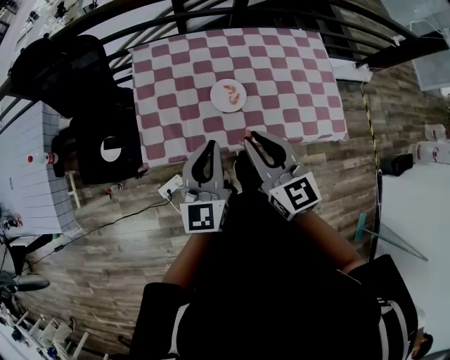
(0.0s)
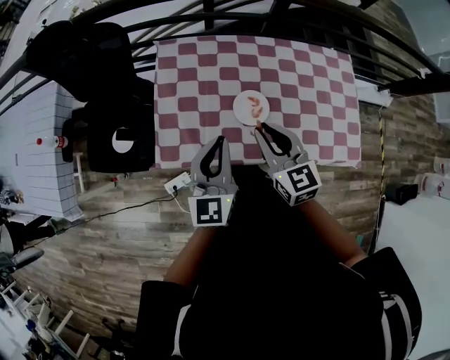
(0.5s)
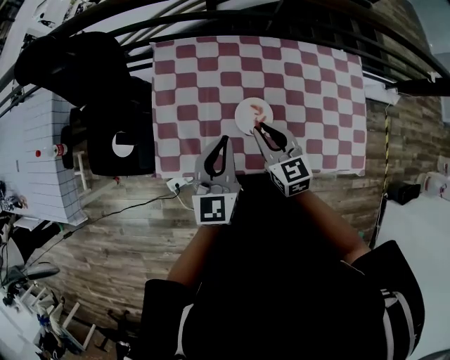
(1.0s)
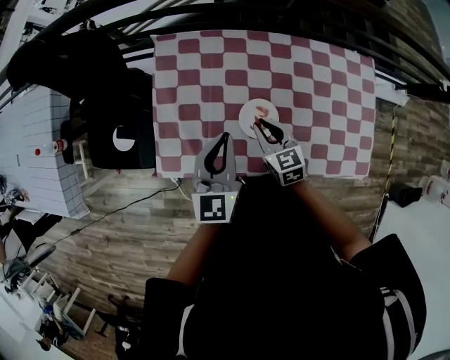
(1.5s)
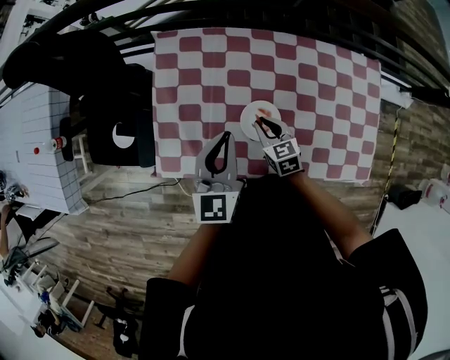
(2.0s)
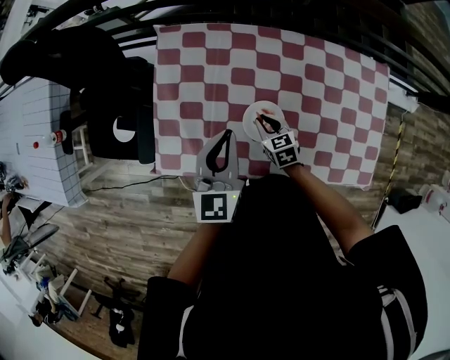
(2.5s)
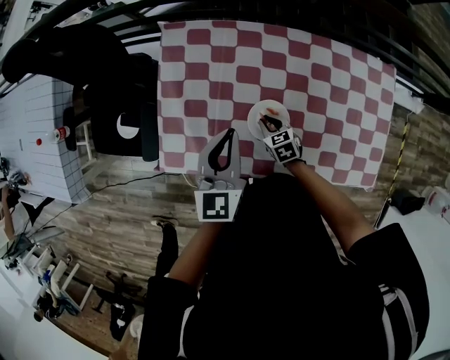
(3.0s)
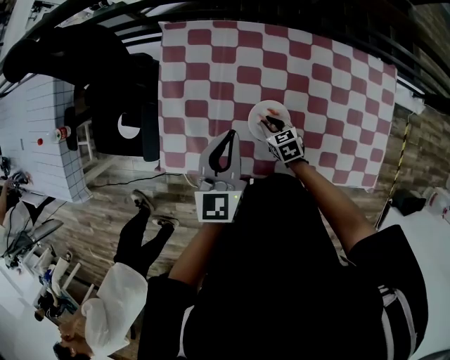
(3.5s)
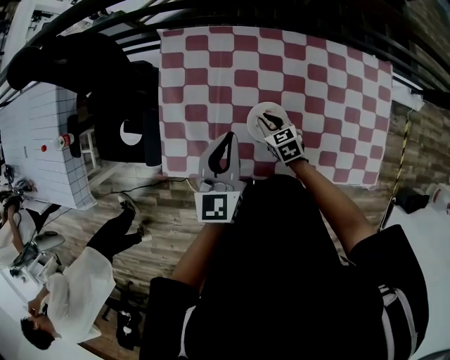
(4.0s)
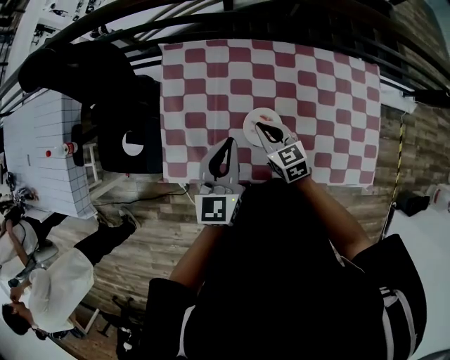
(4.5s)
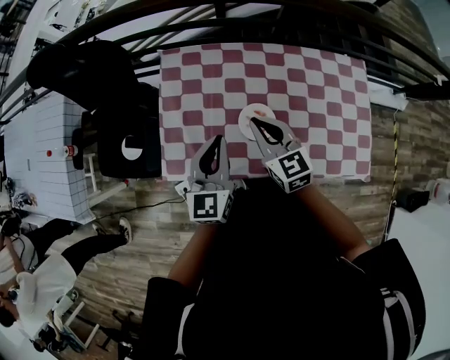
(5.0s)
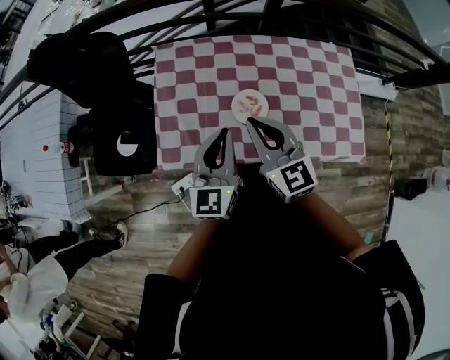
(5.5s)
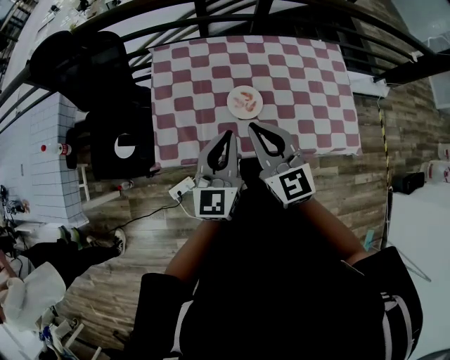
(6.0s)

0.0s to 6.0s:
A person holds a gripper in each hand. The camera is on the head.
0.0s to 2.0s: The left gripper is displaced forward and downward by roughly 20 cm. The right gripper is displaced downward and forward by some 35 cm, and swivels about 30 degrees.
2.0s to 4.0s: The right gripper shifts about 5 cm downward.
4.0s to 6.0s: The right gripper moves upward and backward, approximately 40 cm, and angles its fingers upward, by roughly 40 degrees. Meanwhile the left gripper is displaced backward and upward by about 20 cm.

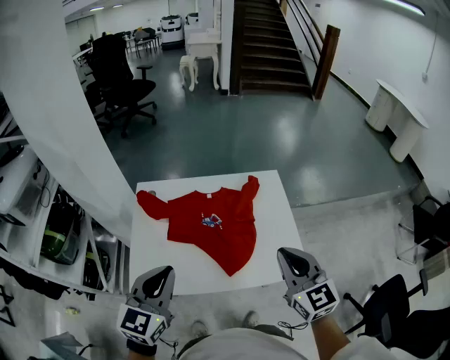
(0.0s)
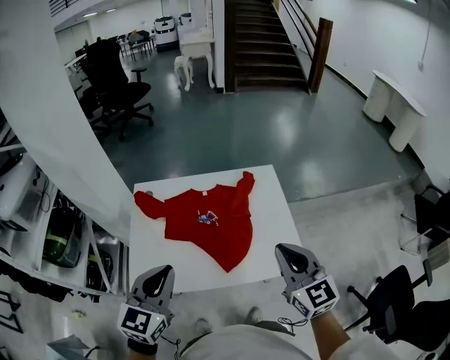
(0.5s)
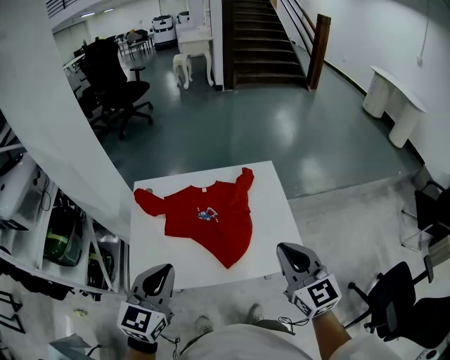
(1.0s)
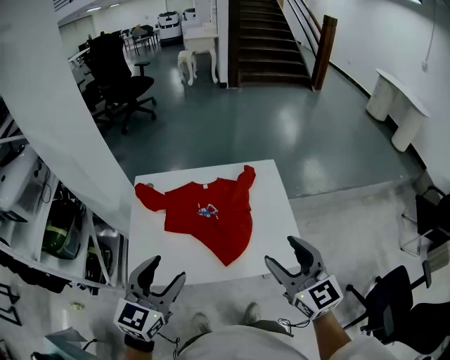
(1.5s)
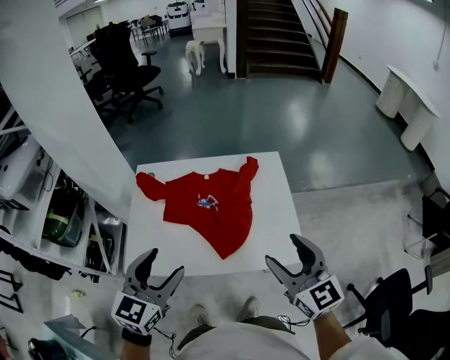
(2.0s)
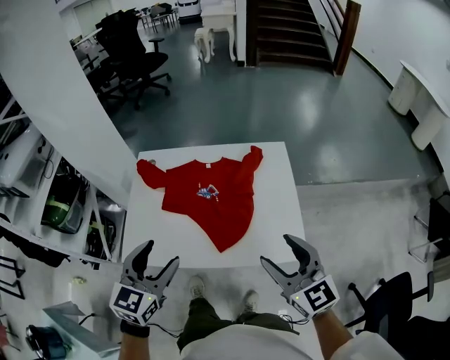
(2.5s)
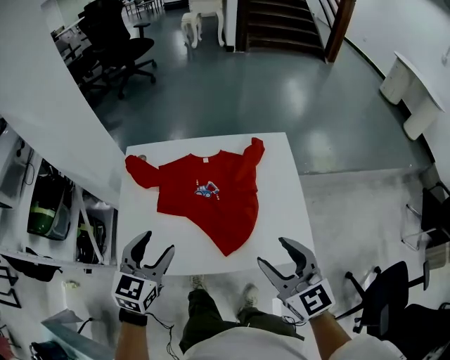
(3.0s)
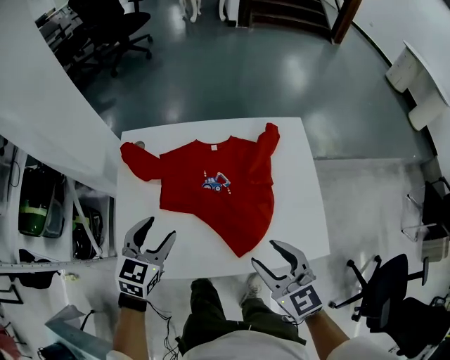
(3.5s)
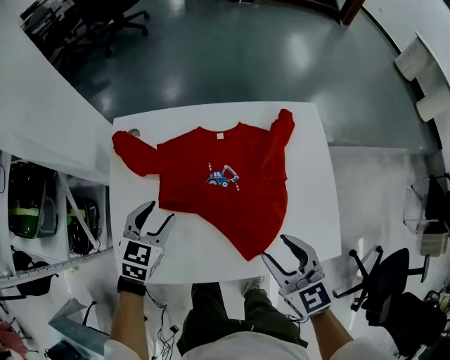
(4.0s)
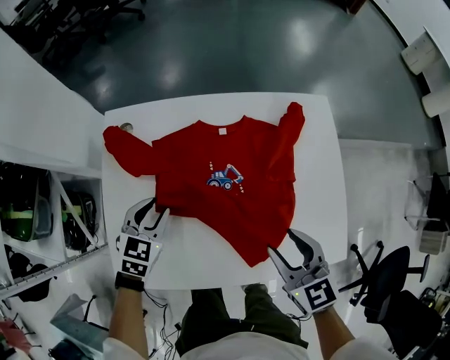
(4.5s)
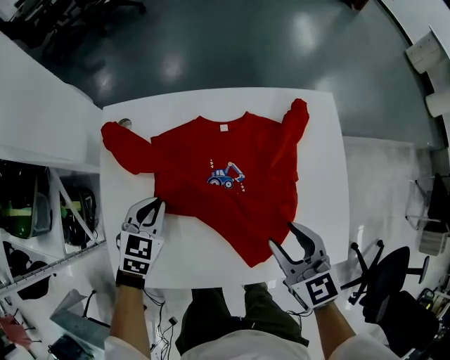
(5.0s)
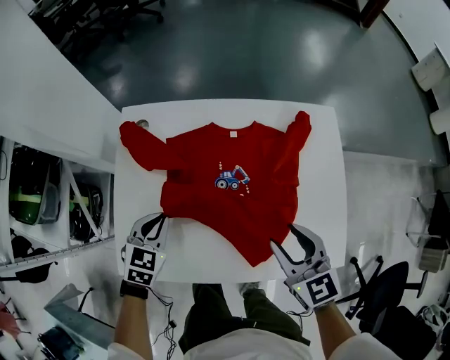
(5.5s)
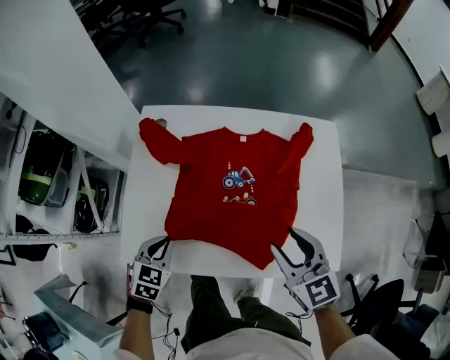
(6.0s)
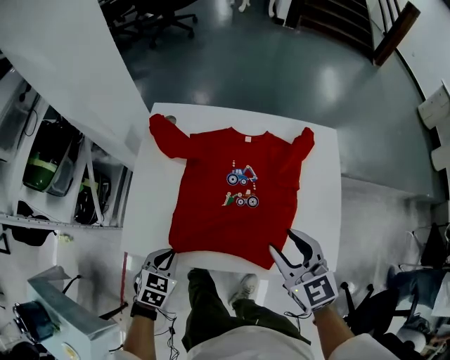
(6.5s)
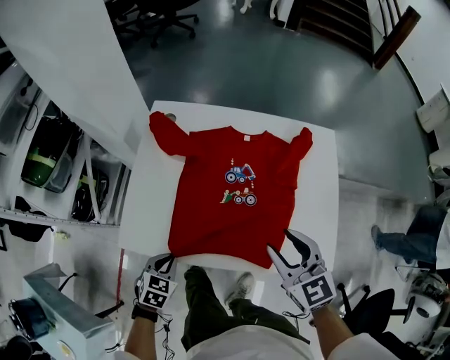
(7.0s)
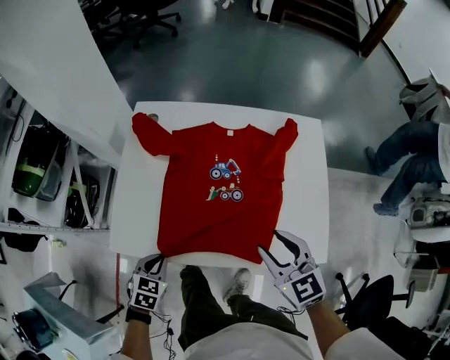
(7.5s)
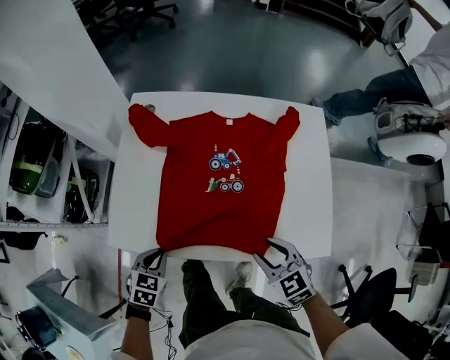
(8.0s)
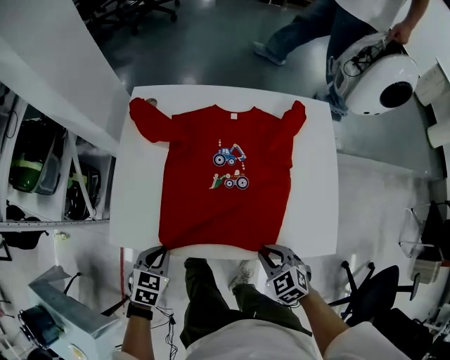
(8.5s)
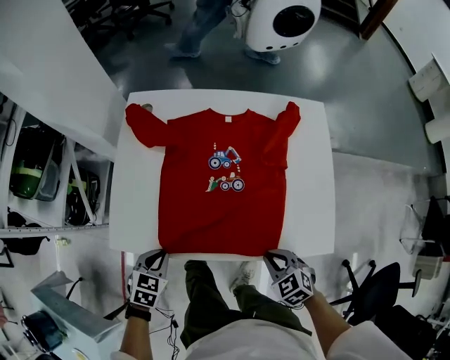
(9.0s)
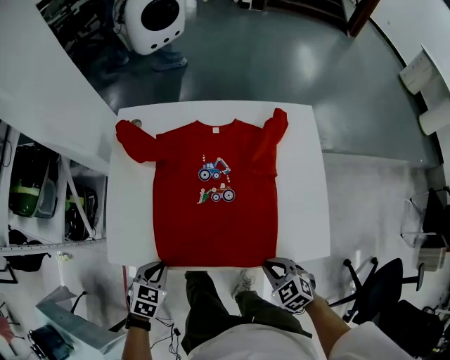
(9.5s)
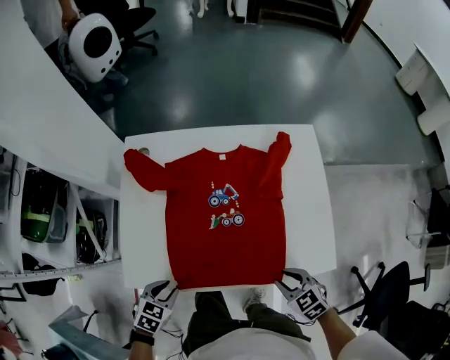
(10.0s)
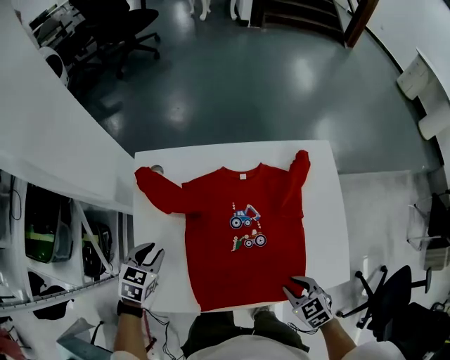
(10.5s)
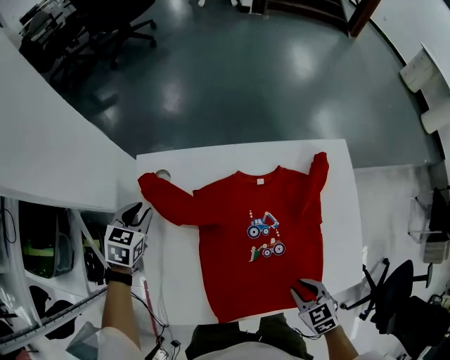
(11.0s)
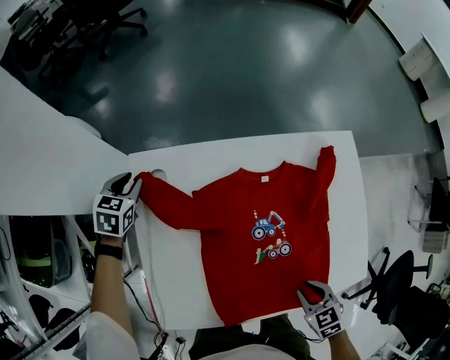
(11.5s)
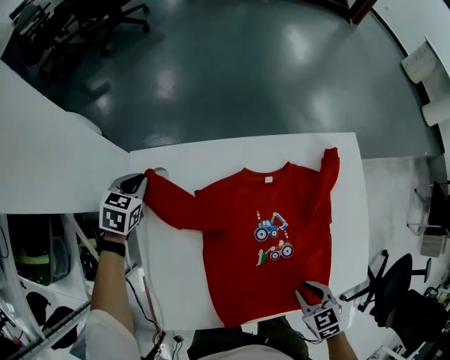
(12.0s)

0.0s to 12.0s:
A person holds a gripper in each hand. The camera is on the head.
0.0s to 2.0s: The left gripper shifts by some 5 cm, and opens its fingers, while the right gripper ends up roughly 5 cm from where it was, and opens up.
2.0s to 4.0s: The left gripper heads downward and forward, covering some 35 cm, and turns by about 20 degrees, while the right gripper moves downward, forward and to the left, approximately 25 cm, and rotates some 30 degrees.
4.0s to 6.0s: The left gripper moves backward, about 10 cm, and closes its fingers.
6.0s to 8.0s: The left gripper is displaced backward by some 10 cm, while the right gripper moves downward and backward, some 15 cm.
8.0s to 10.0s: The right gripper moves to the right, some 5 cm.
10.0s to 12.0s: The right gripper heads forward and to the left, covering roughly 15 cm; the left gripper moves forward, roughly 50 cm.

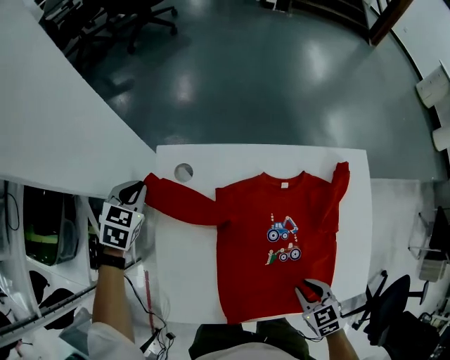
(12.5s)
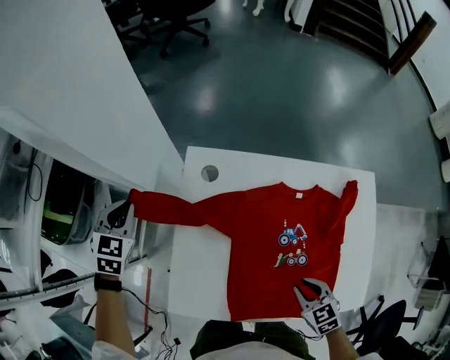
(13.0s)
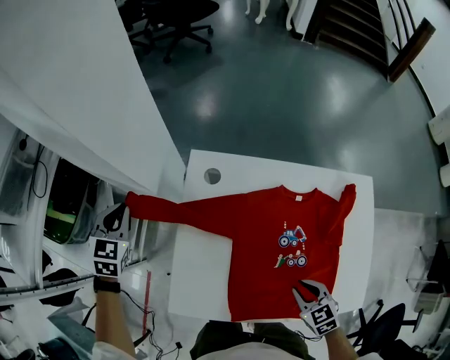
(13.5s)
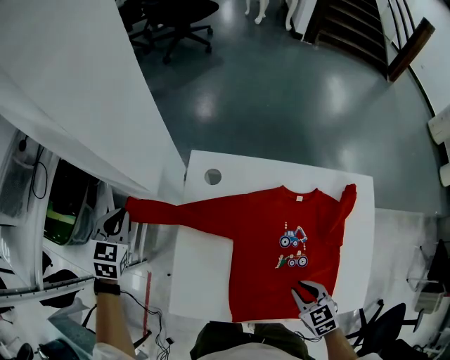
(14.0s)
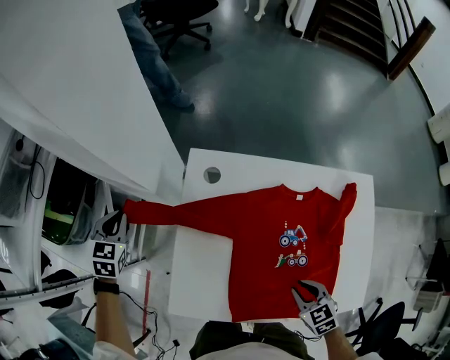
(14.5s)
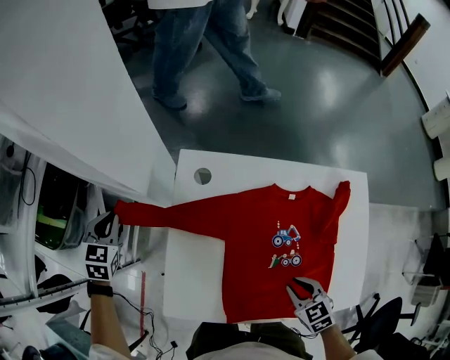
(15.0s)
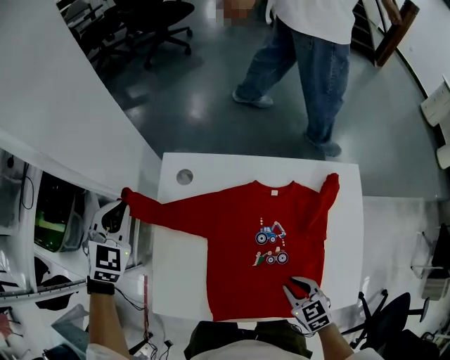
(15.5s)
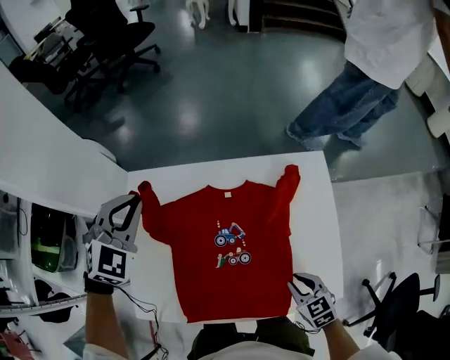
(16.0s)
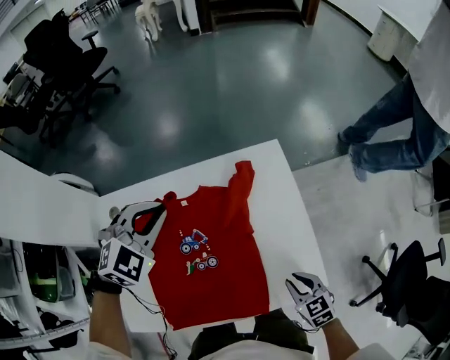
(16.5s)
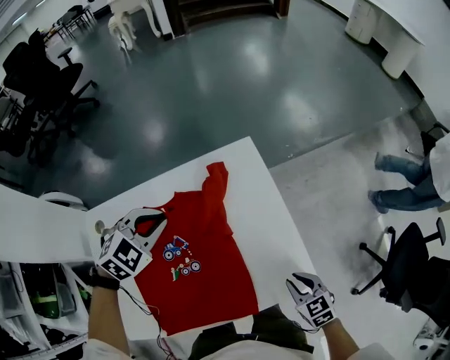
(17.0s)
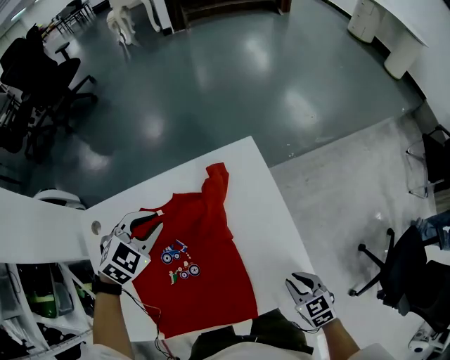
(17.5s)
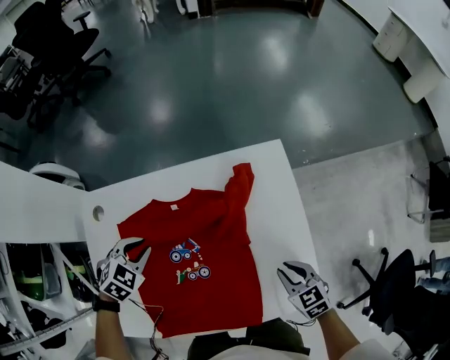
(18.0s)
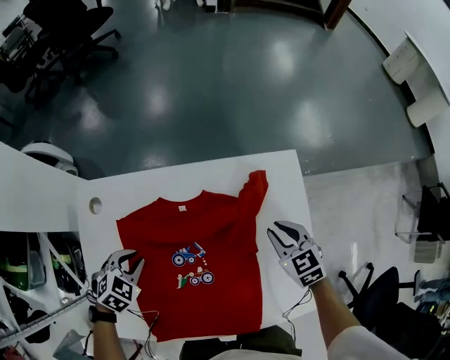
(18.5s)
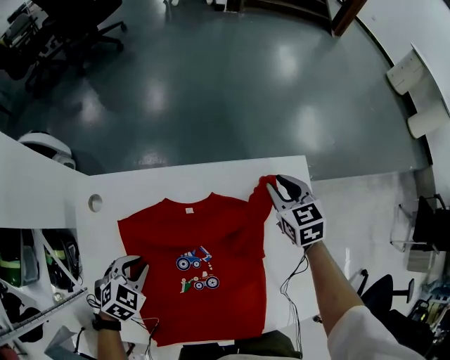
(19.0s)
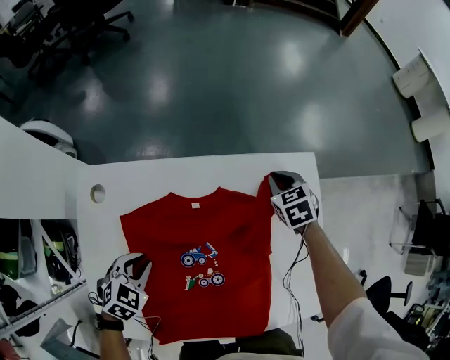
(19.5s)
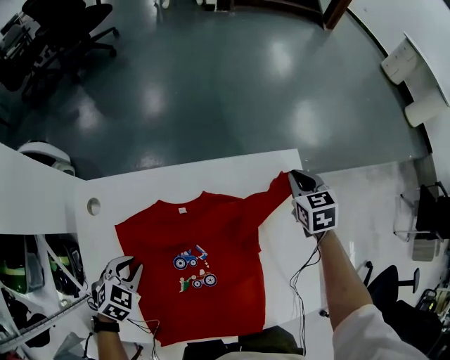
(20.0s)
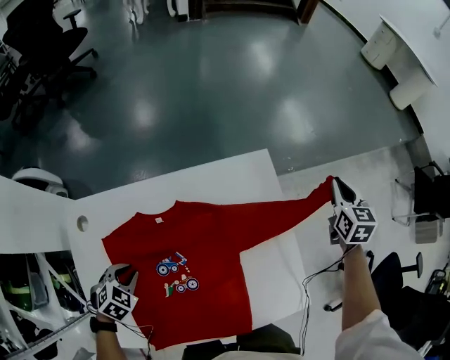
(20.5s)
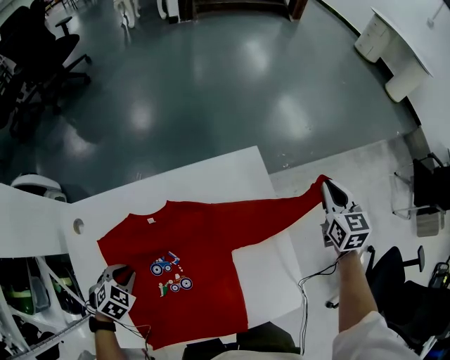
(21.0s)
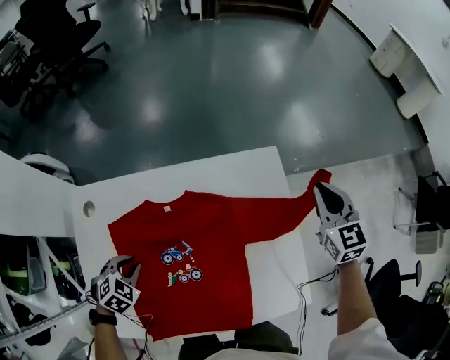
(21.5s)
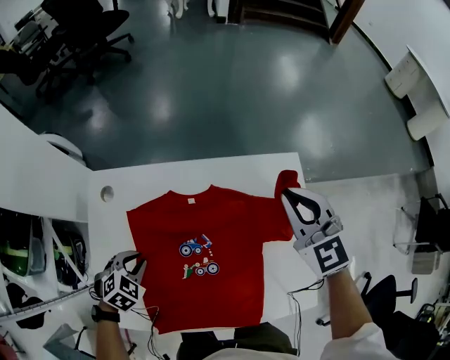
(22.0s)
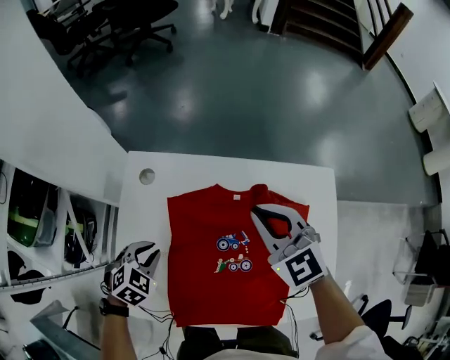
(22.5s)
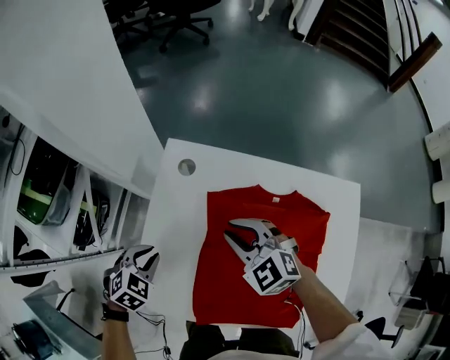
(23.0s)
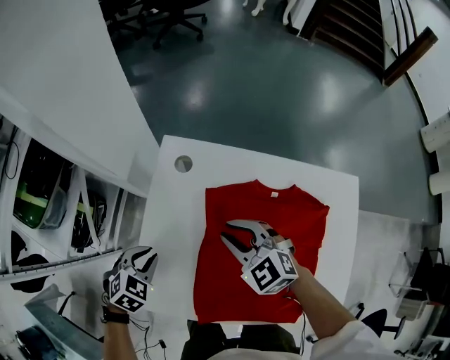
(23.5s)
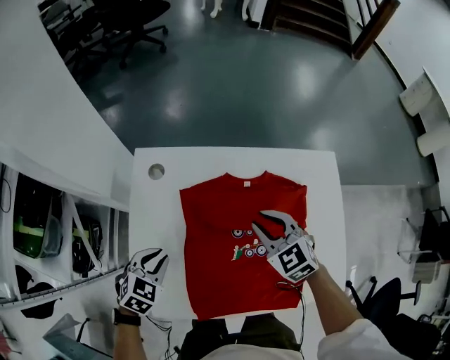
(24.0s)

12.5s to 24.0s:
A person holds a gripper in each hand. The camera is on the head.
12.5s to 14.5s: The left gripper travels to the left and backward by some 20 cm.
14.5s to 16.5s: The right gripper changes place by approximately 30 cm, and changes its angle by roughly 20 degrees. Meanwhile the left gripper shifts by roughly 60 cm, and swivels approximately 60 degrees.
16.5s to 18.5s: The right gripper shifts about 25 cm forward; the left gripper is displaced downward, to the left and backward by about 30 cm, and changes its angle by approximately 40 degrees.
18.5s to 20.0s: The right gripper heads forward, covering roughly 15 cm.
20.0s to 22.0s: The right gripper goes some 20 cm upward and backward, travels to the right and back again, some 20 cm each way, and turns by roughly 30 degrees.
22.0s to 24.0s: The right gripper shifts some 25 cm to the left and downward. The left gripper moves to the left, some 10 cm.
